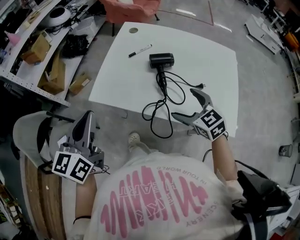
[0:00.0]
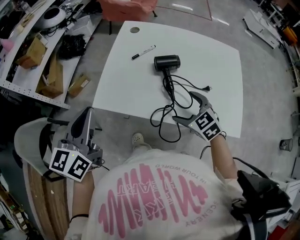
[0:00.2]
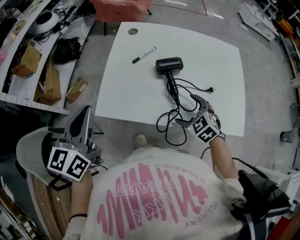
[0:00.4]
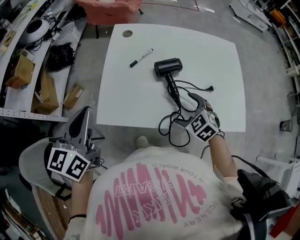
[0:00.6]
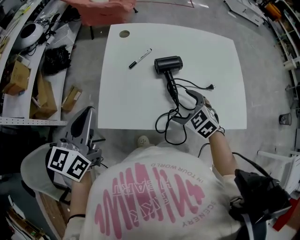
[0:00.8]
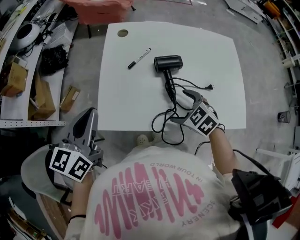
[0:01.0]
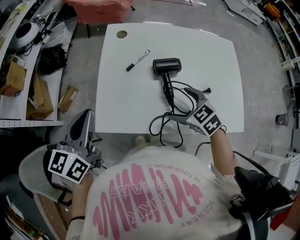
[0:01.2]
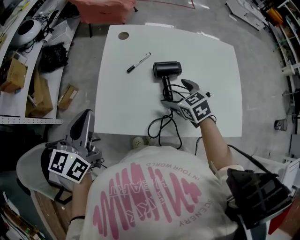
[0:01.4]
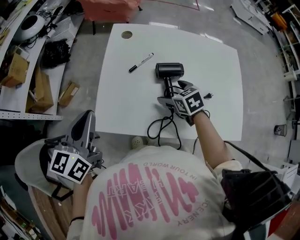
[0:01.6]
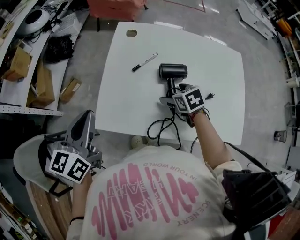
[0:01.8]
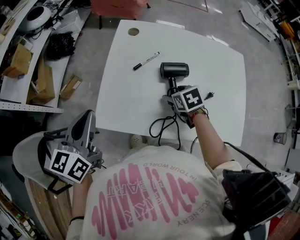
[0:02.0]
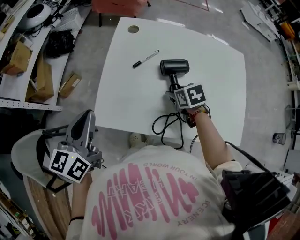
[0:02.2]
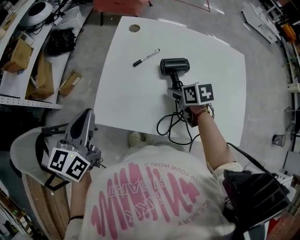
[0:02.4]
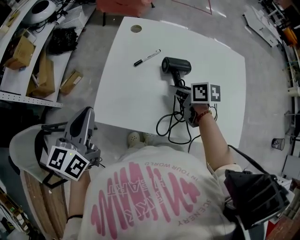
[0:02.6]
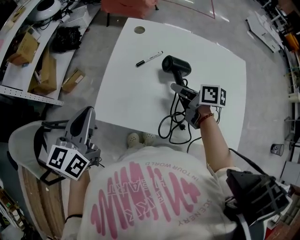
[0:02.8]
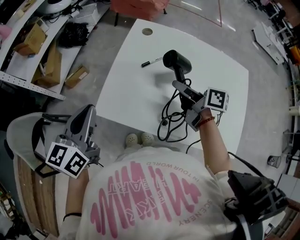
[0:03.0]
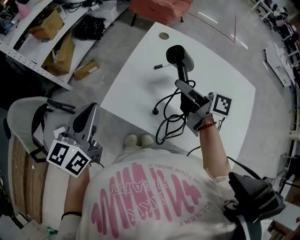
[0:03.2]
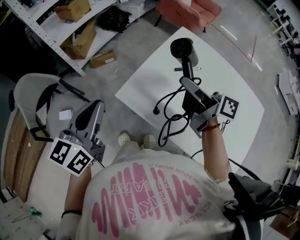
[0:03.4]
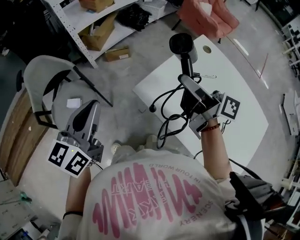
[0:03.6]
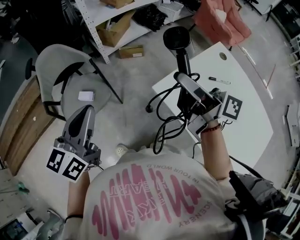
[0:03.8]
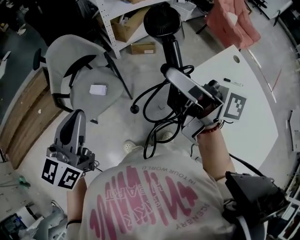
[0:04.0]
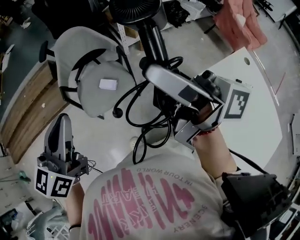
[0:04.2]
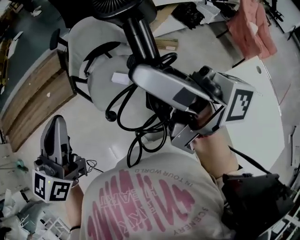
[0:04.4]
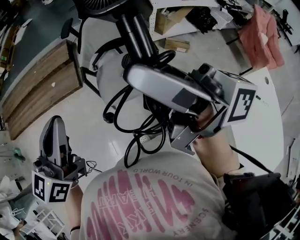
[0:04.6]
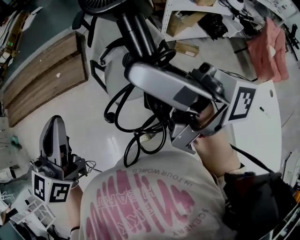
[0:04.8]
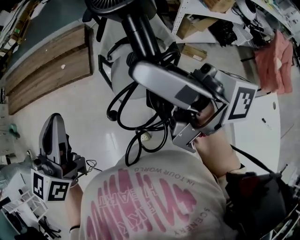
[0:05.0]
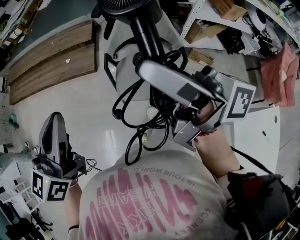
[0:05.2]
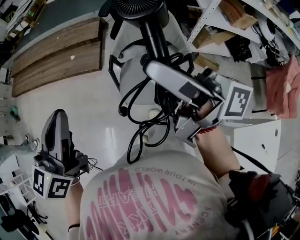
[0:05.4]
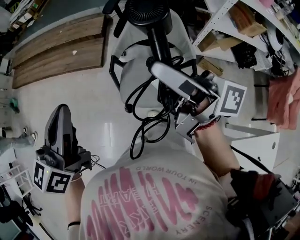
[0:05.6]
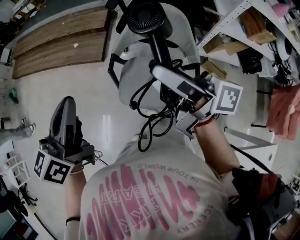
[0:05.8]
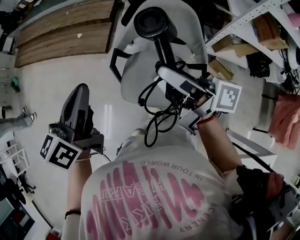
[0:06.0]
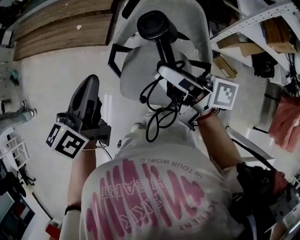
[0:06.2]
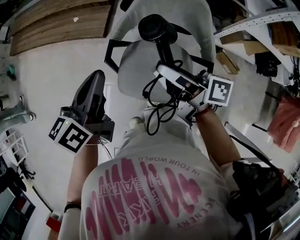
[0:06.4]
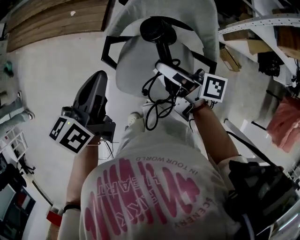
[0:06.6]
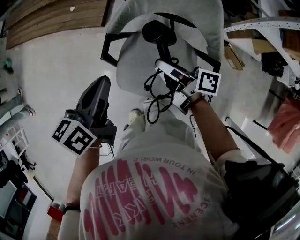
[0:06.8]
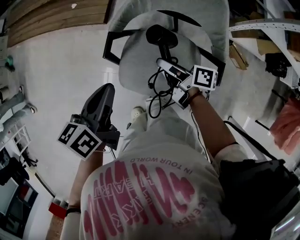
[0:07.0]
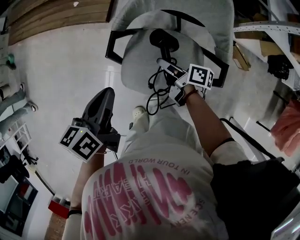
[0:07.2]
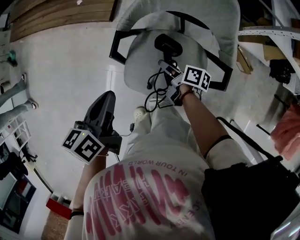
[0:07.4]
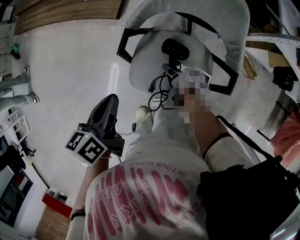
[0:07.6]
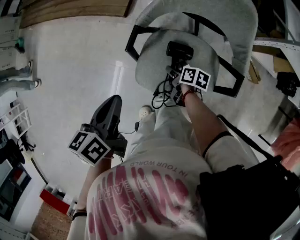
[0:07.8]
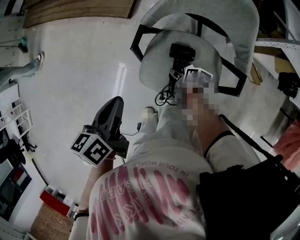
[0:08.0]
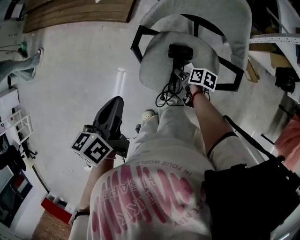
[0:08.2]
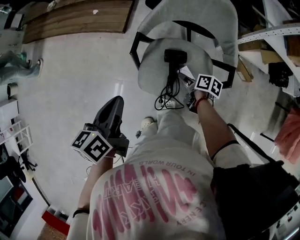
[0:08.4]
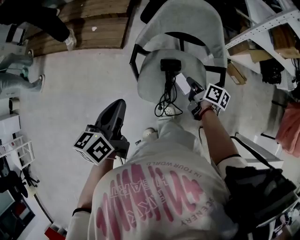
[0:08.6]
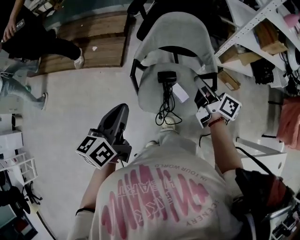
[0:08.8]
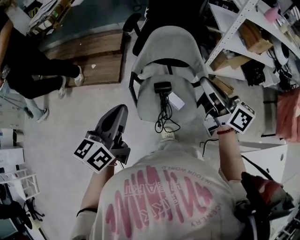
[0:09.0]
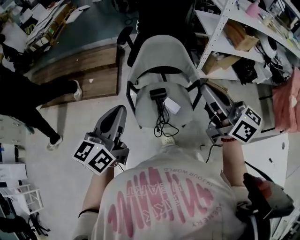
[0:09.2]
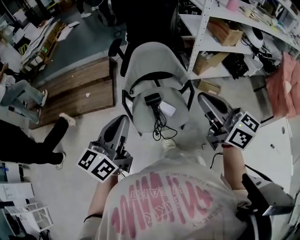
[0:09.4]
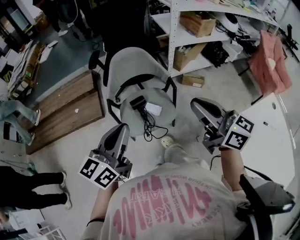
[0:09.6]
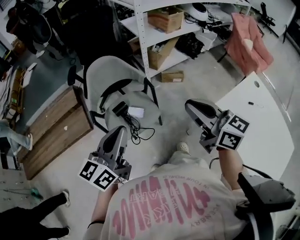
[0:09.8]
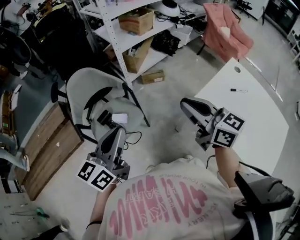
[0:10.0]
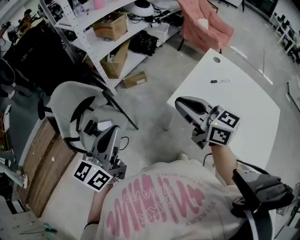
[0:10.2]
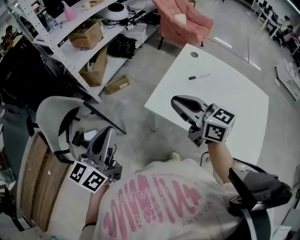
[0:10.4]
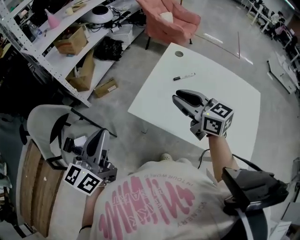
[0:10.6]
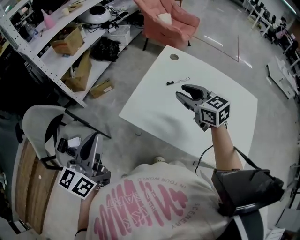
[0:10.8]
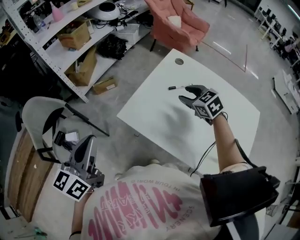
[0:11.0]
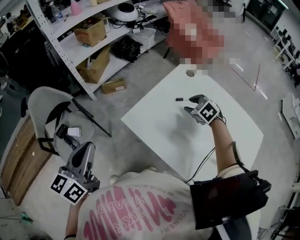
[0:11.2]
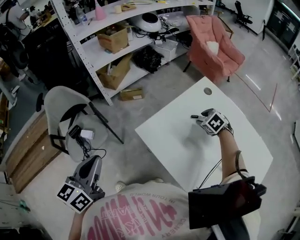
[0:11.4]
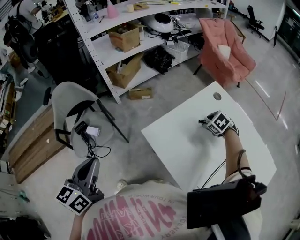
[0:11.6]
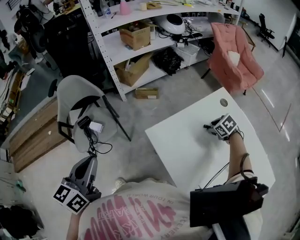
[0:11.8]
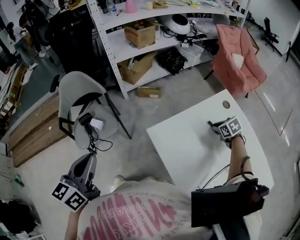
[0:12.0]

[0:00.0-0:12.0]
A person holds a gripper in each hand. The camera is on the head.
0:00.0 to 0:01.6: The right gripper is displaced forward and downward by some 20 cm, and turns by roughly 30 degrees. Meanwhile the left gripper is displaced forward by approximately 15 cm.
0:01.6 to 0:03.0: The right gripper shifts some 10 cm upward, angles its fingers upward, by roughly 40 degrees, and closes.
0:03.0 to 0:04.4: The pair of grippers is taken some 50 cm. The left gripper changes its angle by some 50 degrees. Meanwhile the right gripper points its fingers roughly 40 degrees further upward.
0:04.4 to 0:06.0: The right gripper ends up about 30 cm from where it was, and swivels roughly 30 degrees. Meanwhile the left gripper changes place by approximately 20 cm, and turns by approximately 40 degrees.
0:06.0 to 0:07.6: The left gripper is displaced downward by about 15 cm, and turns by some 30 degrees. Meanwhile the right gripper shifts roughly 40 cm downward, and angles its fingers downward, by approximately 50 degrees.
0:07.6 to 0:09.0: The left gripper is displaced upward by roughly 15 cm, and tilts its fingers some 30 degrees upward, while the right gripper travels upward by approximately 40 cm, angles its fingers upward, by about 40 degrees, and closes its fingers.
0:09.0 to 0:10.4: The right gripper changes place by roughly 50 cm, and turns by roughly 50 degrees; the left gripper changes place by about 40 cm, and swivels roughly 60 degrees.
0:10.4 to 0:12.0: The left gripper shifts by some 5 cm, and turns by approximately 30 degrees. Meanwhile the right gripper shifts by roughly 40 cm, and tilts its fingers approximately 60 degrees downward.

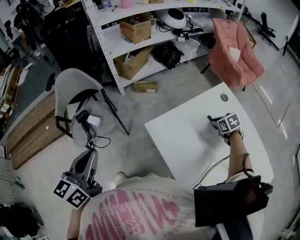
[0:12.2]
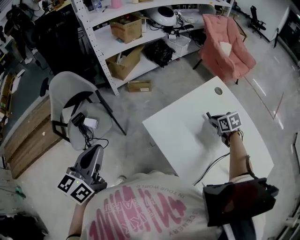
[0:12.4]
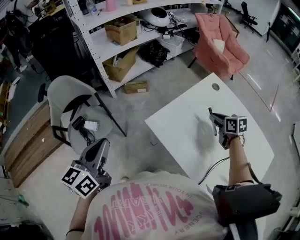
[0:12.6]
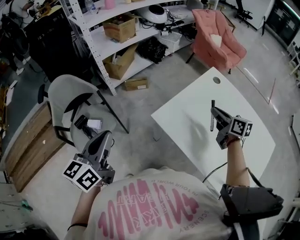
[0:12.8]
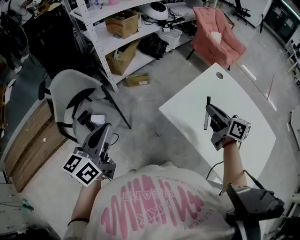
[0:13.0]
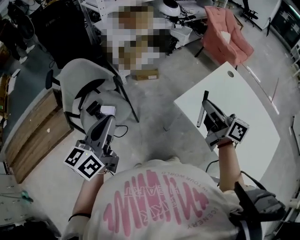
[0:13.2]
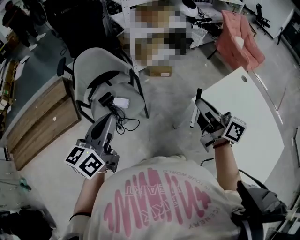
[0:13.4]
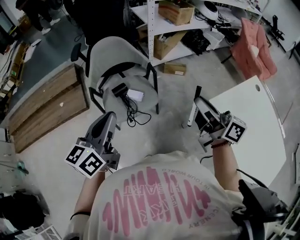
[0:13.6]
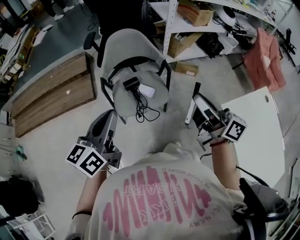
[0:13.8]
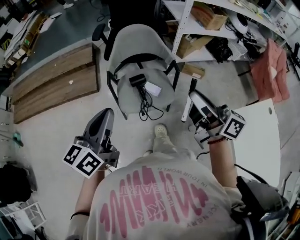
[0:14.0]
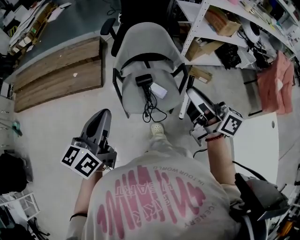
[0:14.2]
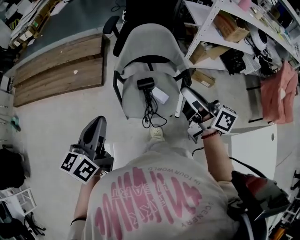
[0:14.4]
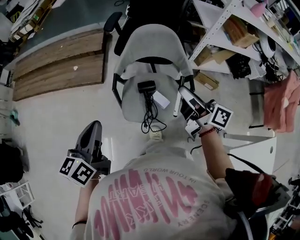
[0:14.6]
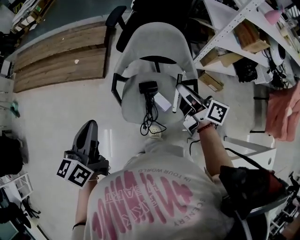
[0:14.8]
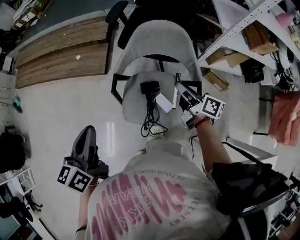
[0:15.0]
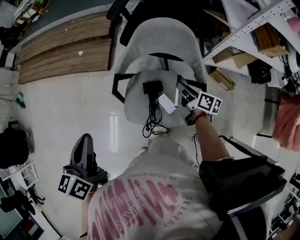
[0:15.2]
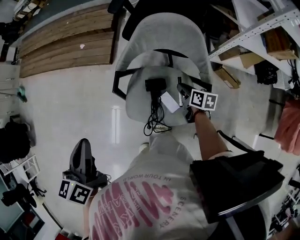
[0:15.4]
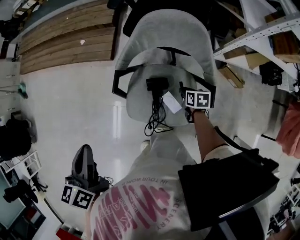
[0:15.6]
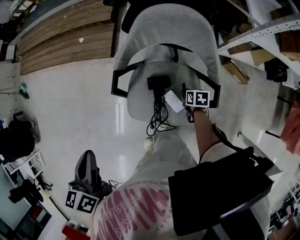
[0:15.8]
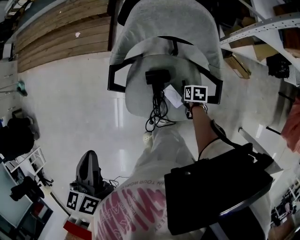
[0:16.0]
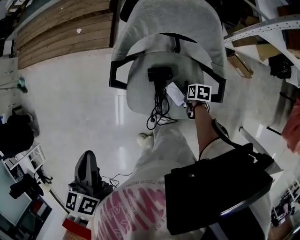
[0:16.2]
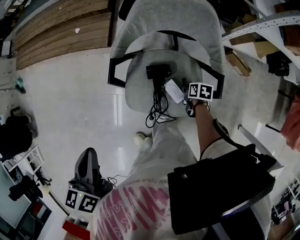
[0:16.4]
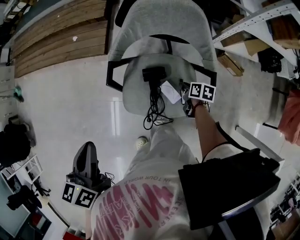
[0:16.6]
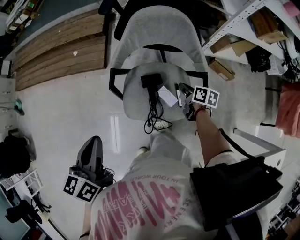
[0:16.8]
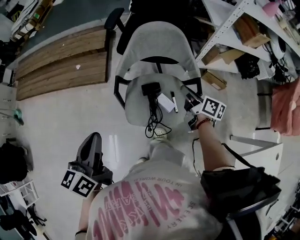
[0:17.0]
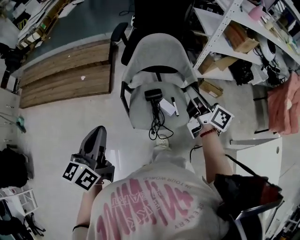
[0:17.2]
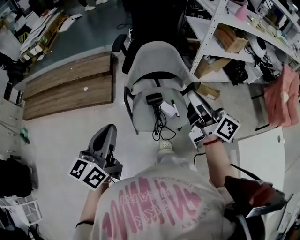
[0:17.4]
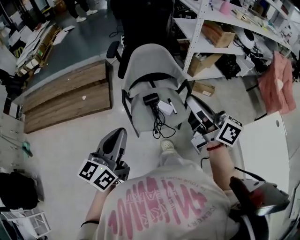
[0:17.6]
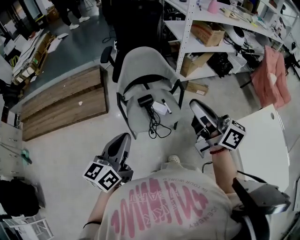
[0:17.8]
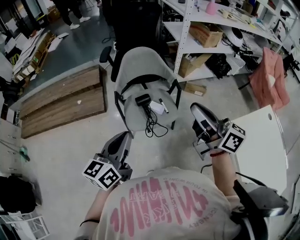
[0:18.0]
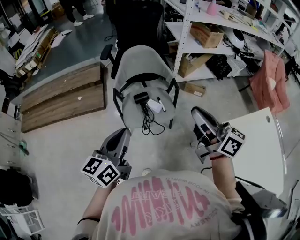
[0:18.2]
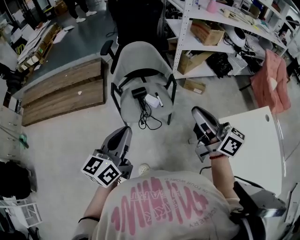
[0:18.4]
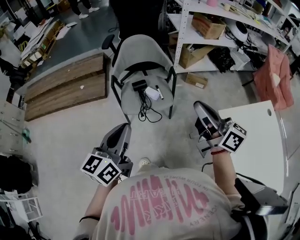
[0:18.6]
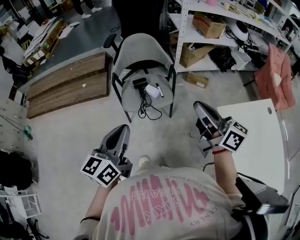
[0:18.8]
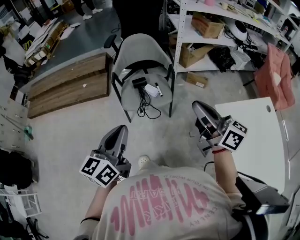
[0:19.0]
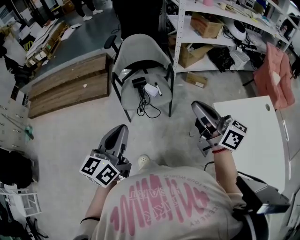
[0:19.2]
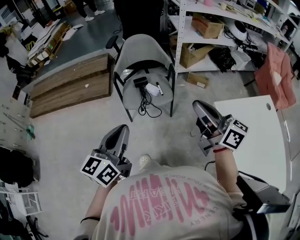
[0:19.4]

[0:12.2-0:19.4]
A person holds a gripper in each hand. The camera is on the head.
0:12.2 to 0:13.6: The left gripper heads to the left, covering approximately 25 cm; the right gripper moves to the left and upward, approximately 60 cm, and points its fingers some 70 degrees further upward.
0:13.6 to 0:15.0: The left gripper ends up about 20 cm from where it was, and changes its angle by roughly 40 degrees, while the right gripper shifts by some 40 cm, and turns by some 40 degrees.
0:15.0 to 0:16.6: The left gripper is displaced downward by about 5 cm. The right gripper shifts approximately 30 cm downward, and angles its fingers downward, by about 40 degrees.
0:16.6 to 0:18.0: The left gripper shifts by approximately 20 cm, and turns by roughly 50 degrees, while the right gripper goes about 50 cm upward, and angles its fingers upward, by about 70 degrees.
0:18.0 to 0:19.4: The two grippers go roughly 15 cm backward and to the right.

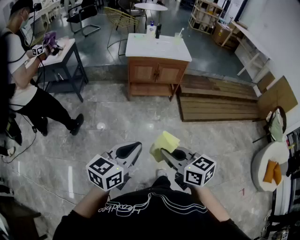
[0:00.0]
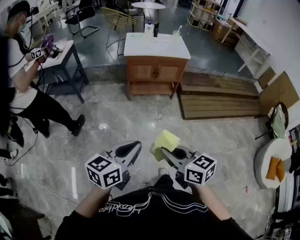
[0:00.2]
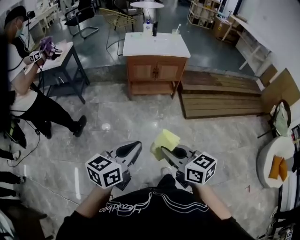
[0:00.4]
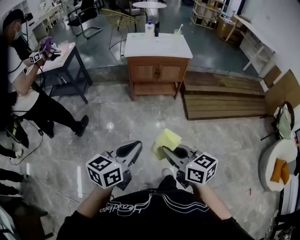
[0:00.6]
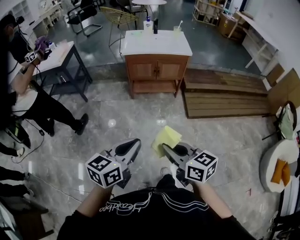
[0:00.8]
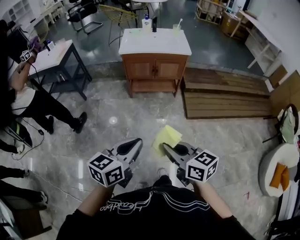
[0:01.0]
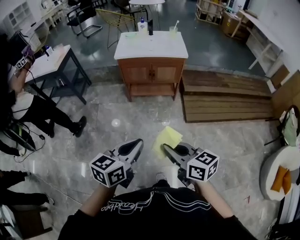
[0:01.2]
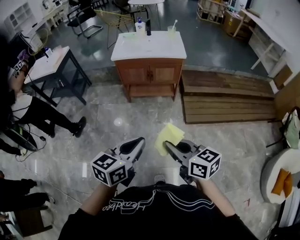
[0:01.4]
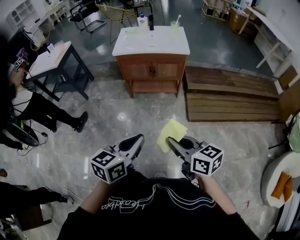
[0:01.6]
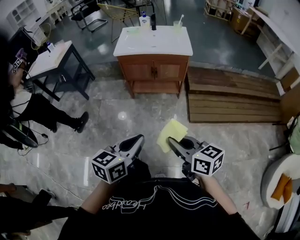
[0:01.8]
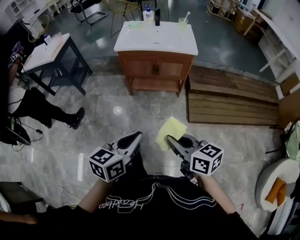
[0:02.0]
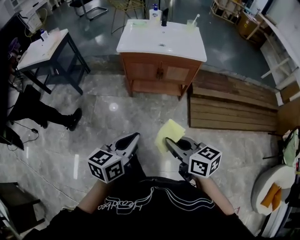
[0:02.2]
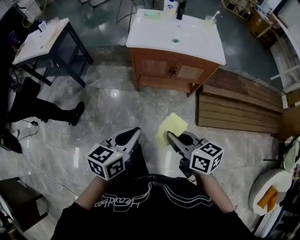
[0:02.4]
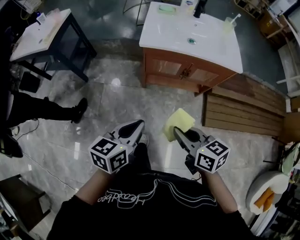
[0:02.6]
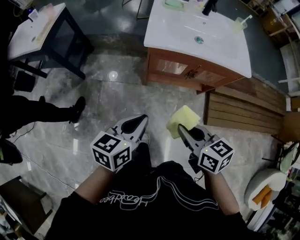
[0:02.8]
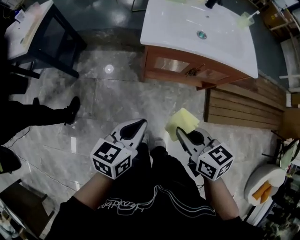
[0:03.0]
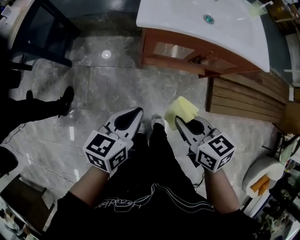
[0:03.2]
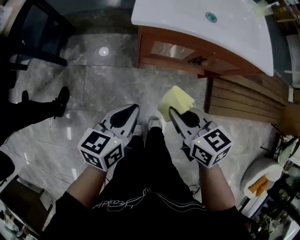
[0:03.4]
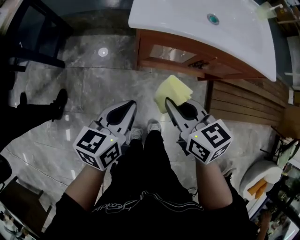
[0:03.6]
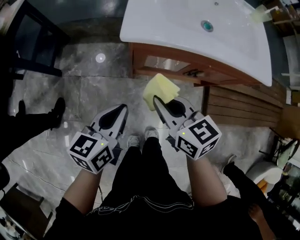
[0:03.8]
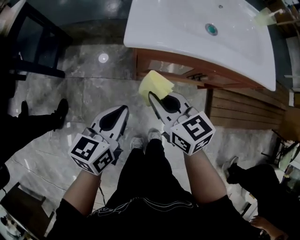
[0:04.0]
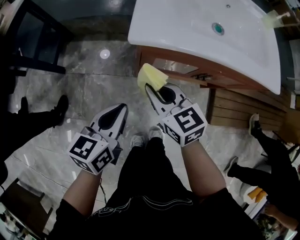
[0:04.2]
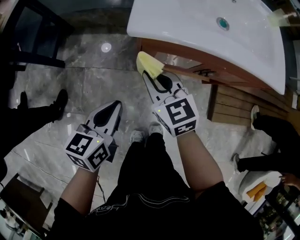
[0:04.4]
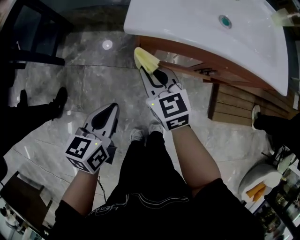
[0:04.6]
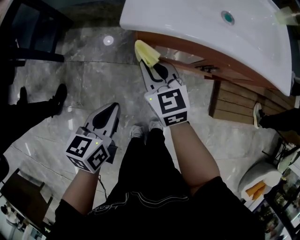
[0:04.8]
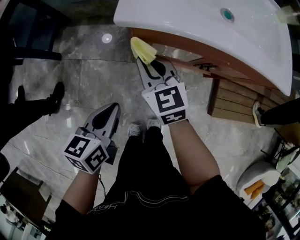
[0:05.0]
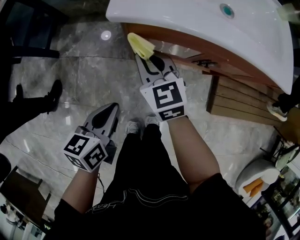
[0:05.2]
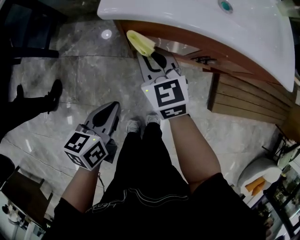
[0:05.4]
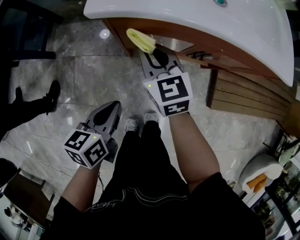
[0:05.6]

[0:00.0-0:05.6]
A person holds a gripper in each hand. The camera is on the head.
0:00.0 to 0:01.4: Both grippers move to the right and forward, about 25 cm.
0:01.4 to 0:02.8: Both grippers are carried forward and to the left, approximately 50 cm.
0:02.8 to 0:04.2: Both grippers travel together forward and downward, roughly 25 cm.
0:04.2 to 0:05.6: The right gripper travels forward and downward by about 10 cm. Meanwhile the left gripper heads downward, covering about 10 cm.
